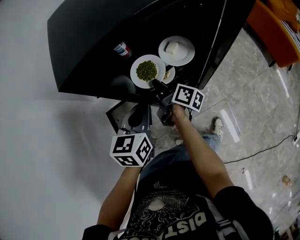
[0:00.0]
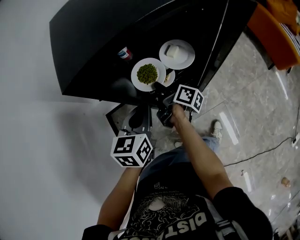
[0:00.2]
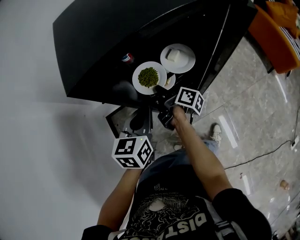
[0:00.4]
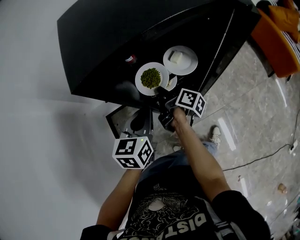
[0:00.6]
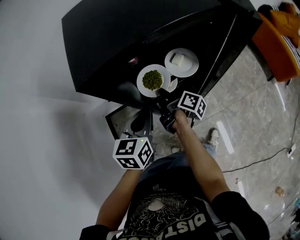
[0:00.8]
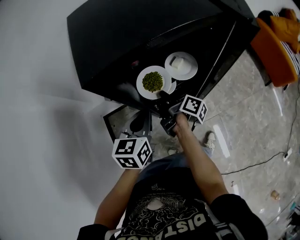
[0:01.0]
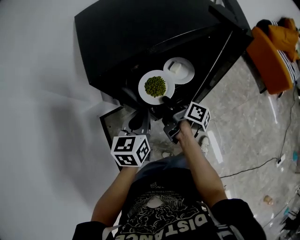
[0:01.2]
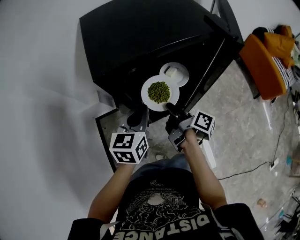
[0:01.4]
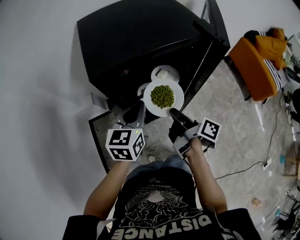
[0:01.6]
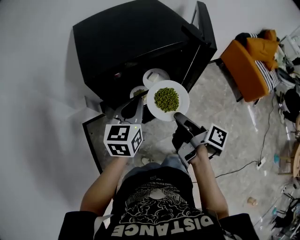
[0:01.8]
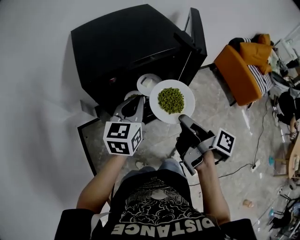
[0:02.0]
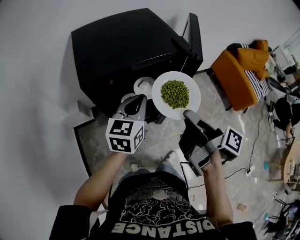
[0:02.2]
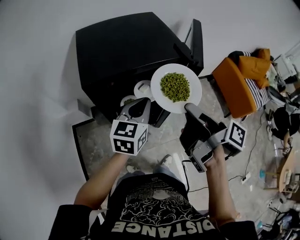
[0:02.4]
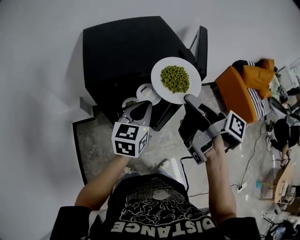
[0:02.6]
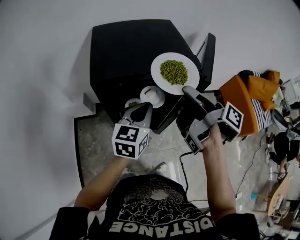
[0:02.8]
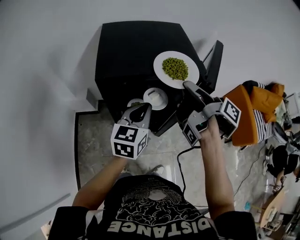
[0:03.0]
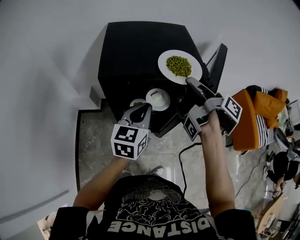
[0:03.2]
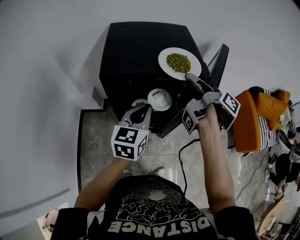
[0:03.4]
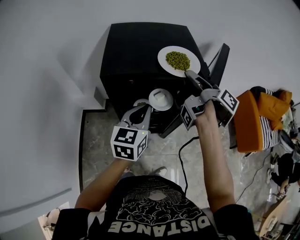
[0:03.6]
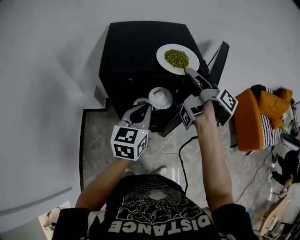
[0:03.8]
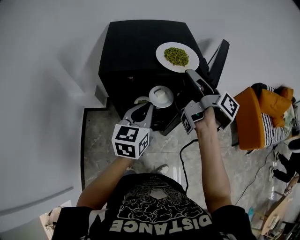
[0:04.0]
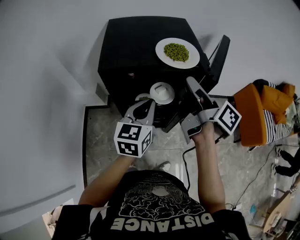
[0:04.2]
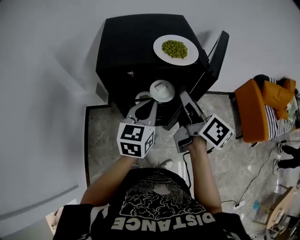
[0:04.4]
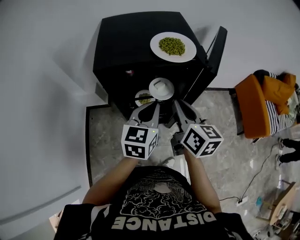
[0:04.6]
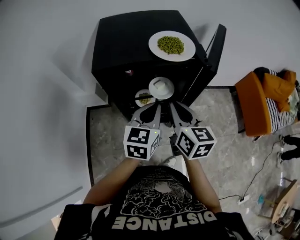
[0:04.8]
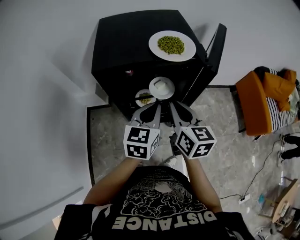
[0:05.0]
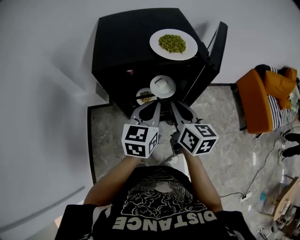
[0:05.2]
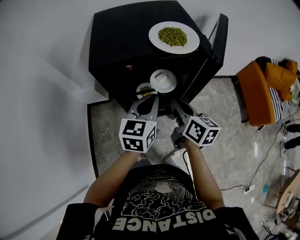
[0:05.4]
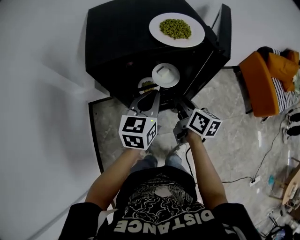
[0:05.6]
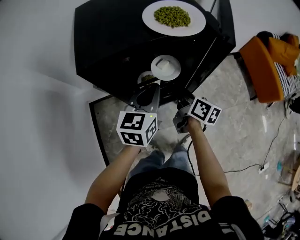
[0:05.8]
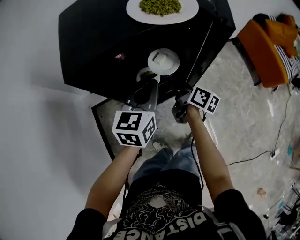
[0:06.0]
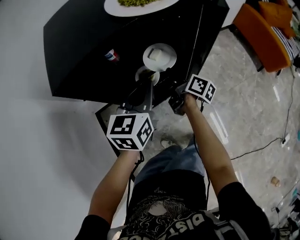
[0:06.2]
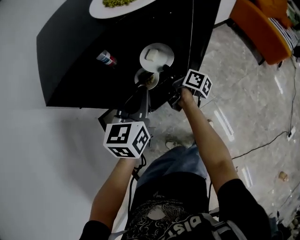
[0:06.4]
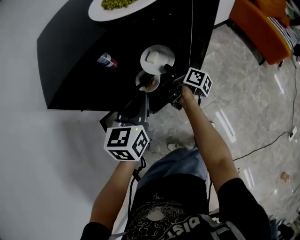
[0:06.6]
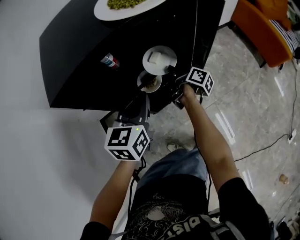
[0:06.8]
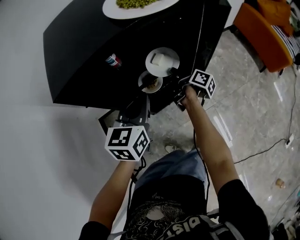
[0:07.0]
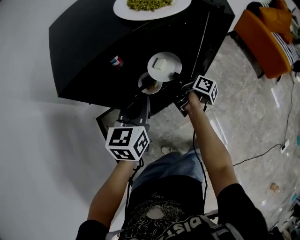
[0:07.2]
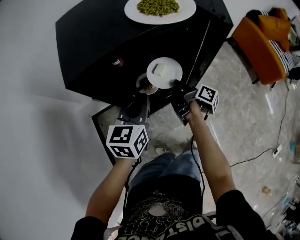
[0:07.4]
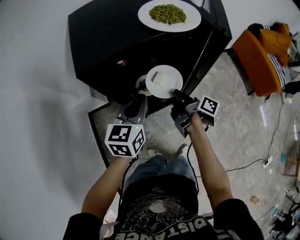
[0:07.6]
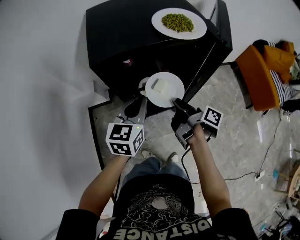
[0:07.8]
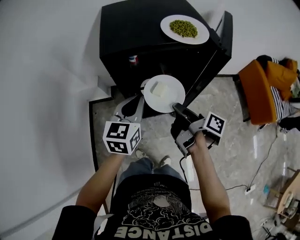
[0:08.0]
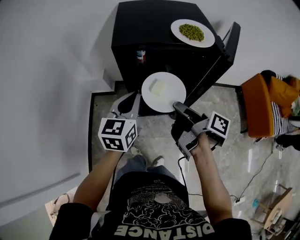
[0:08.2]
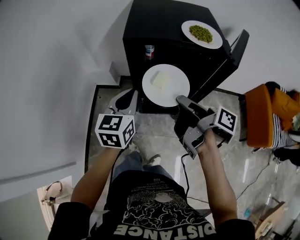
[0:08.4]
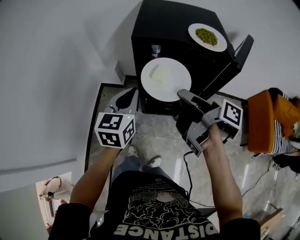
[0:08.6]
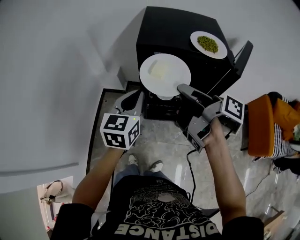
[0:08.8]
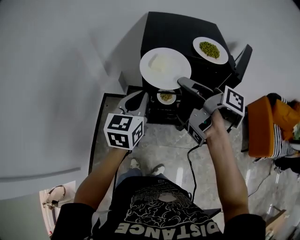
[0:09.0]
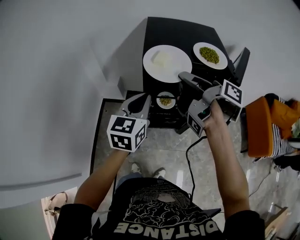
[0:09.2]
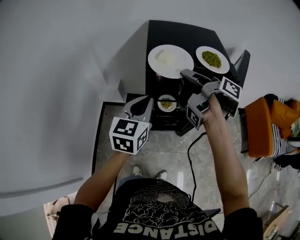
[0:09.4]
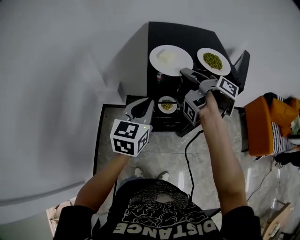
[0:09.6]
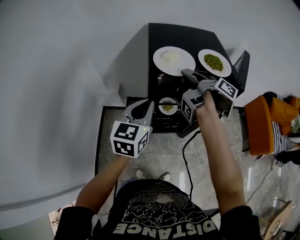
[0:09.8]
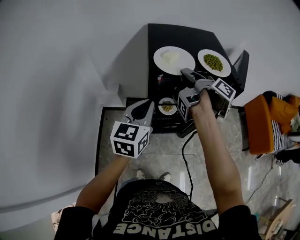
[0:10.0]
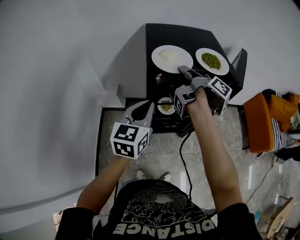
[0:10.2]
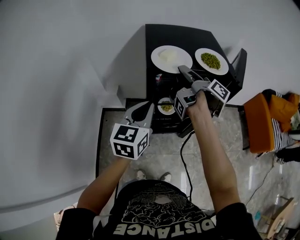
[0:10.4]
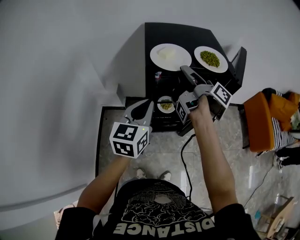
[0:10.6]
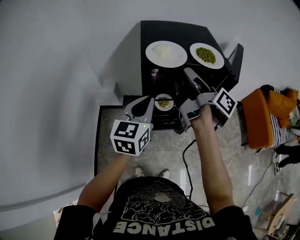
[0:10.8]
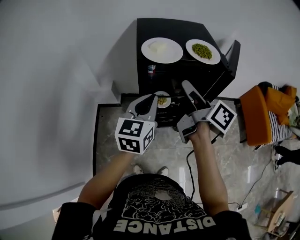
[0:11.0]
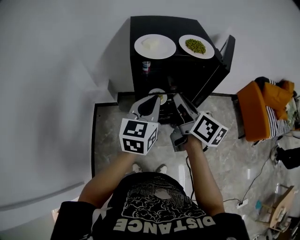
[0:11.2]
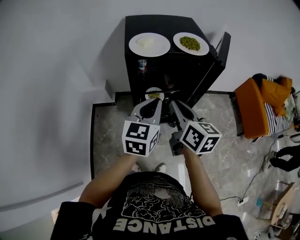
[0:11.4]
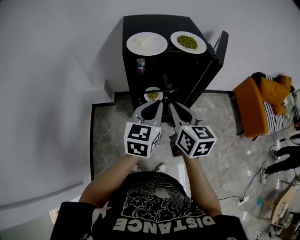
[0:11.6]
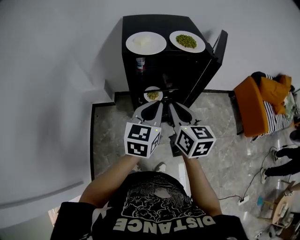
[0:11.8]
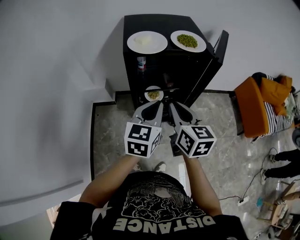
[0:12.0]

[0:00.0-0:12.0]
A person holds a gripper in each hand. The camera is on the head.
0.0 to 1.6 s: The right gripper heads upward, backward and to the right, covering some 20 cm, and closes its fingers. Meanwhile the left gripper is displaced upward by some 10 cm.
1.6 to 3.0 s: The left gripper heads upward and to the right, covering approximately 10 cm; the right gripper is displaced upward and forward by approximately 25 cm.
3.0 to 4.4 s: The right gripper ends up some 5 cm from where it was, and changes its angle by about 40 degrees.
4.4 to 6.0 s: The right gripper goes approximately 25 cm downward, and swivels roughly 20 degrees, while the left gripper goes some 10 cm downward.
6.0 to 7.6 s: The right gripper changes its angle by about 30 degrees; the left gripper moves some 5 cm.
7.6 to 9.0 s: The left gripper goes some 10 cm upward, and swivels about 20 degrees. Meanwhile the right gripper travels upward by roughly 30 cm, and turns by some 30 degrees.
9.0 to 10.4 s: The right gripper is displaced forward by some 10 cm, and turns by approximately 20 degrees.
10.4 to 12.0 s: The left gripper goes approximately 15 cm to the right and backward; the right gripper is displaced backward by roughly 20 cm, and twists roughly 80 degrees counterclockwise, seen from behind.

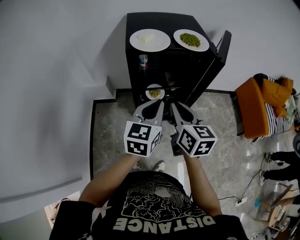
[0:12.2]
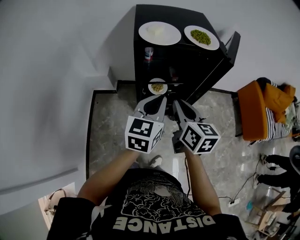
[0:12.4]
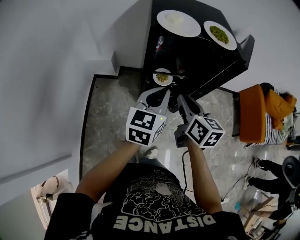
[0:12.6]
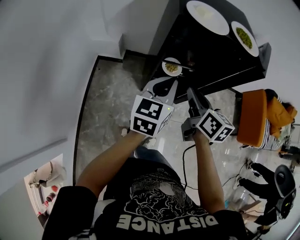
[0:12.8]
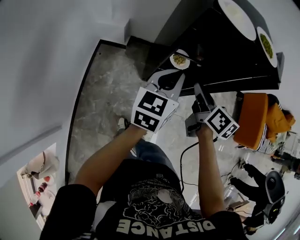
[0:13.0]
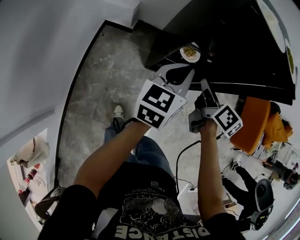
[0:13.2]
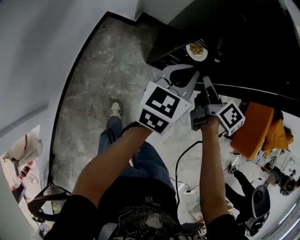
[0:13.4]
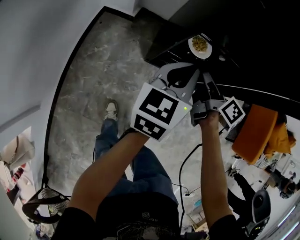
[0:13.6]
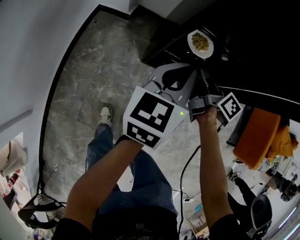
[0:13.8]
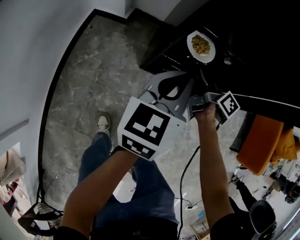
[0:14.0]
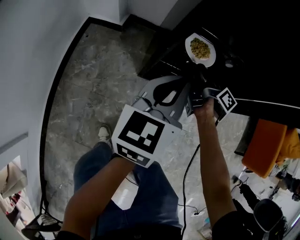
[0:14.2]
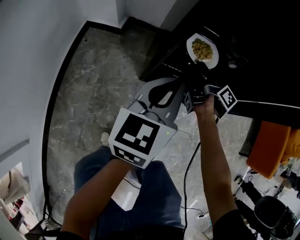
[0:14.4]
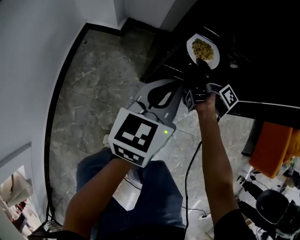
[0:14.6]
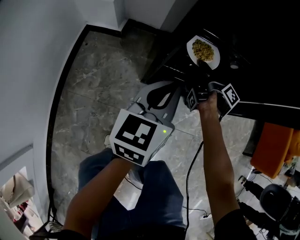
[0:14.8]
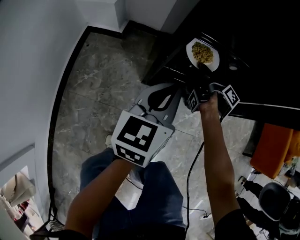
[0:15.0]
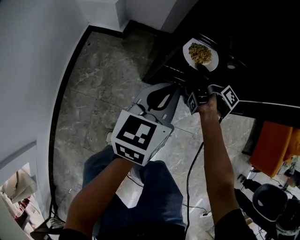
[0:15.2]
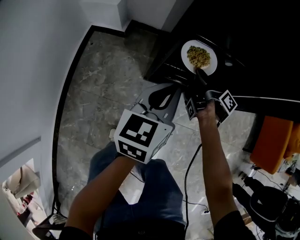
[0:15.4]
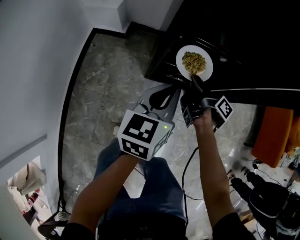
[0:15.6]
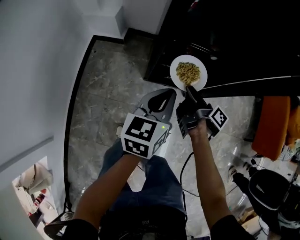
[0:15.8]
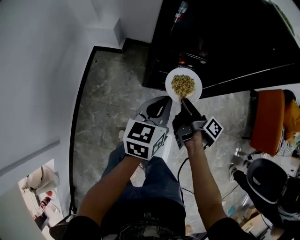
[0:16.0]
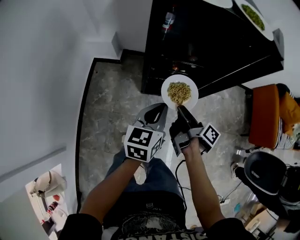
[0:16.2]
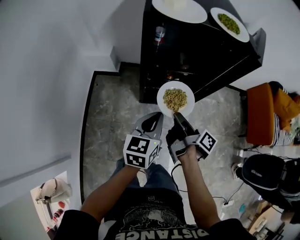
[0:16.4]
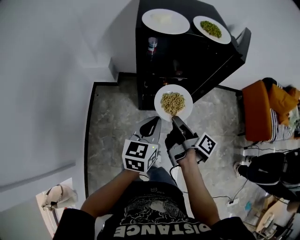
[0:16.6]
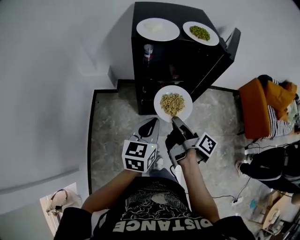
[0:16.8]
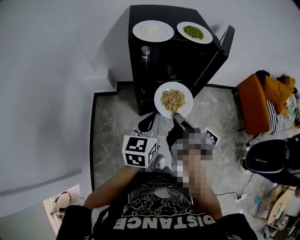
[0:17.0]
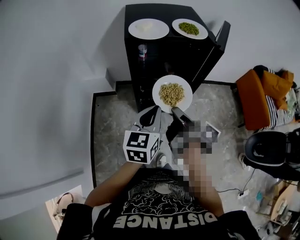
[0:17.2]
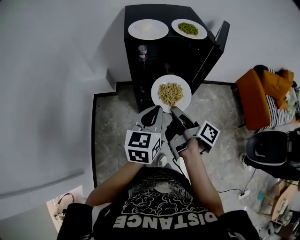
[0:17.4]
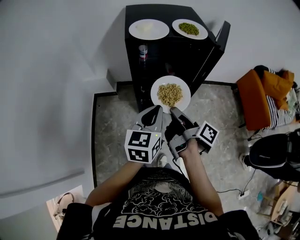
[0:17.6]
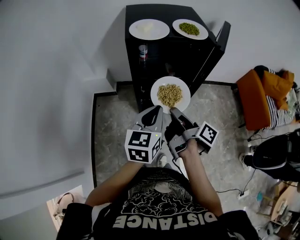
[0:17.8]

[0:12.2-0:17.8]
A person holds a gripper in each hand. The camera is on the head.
12.2 to 13.6 s: The two grippers go approximately 25 cm downward. The left gripper swivels roughly 20 degrees. The right gripper rotates approximately 40 degrees.
13.6 to 15.0 s: The right gripper travels downward and forward by some 25 cm, changes its angle by some 40 degrees, and opens, then closes once more. Meanwhile the left gripper is displaced downward by approximately 15 cm.
15.0 to 16.4 s: The right gripper heads upward and backward, covering roughly 40 cm. The left gripper moves upward and backward, roughly 25 cm.
16.4 to 17.8 s: Both grippers move upward, about 10 cm.

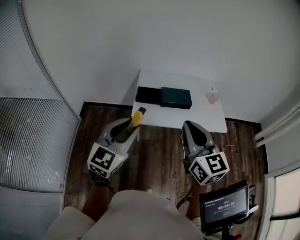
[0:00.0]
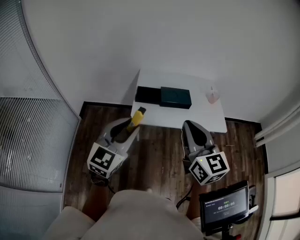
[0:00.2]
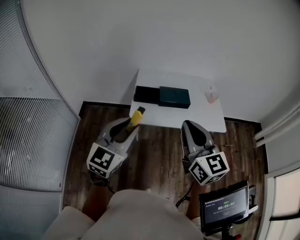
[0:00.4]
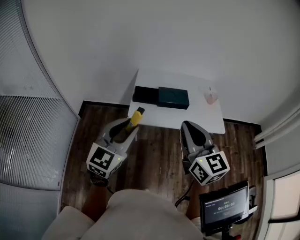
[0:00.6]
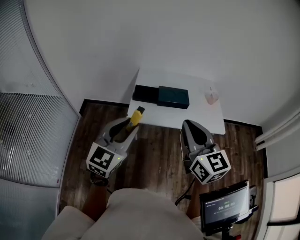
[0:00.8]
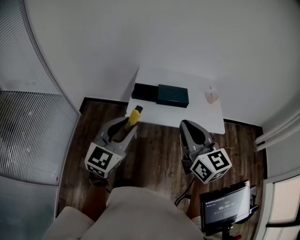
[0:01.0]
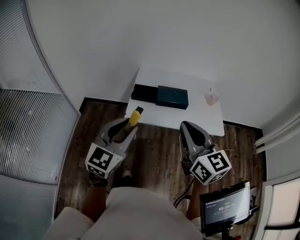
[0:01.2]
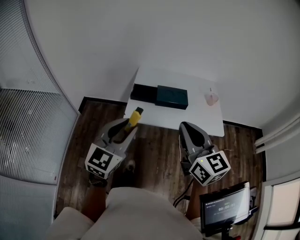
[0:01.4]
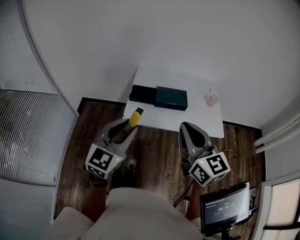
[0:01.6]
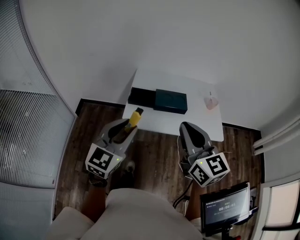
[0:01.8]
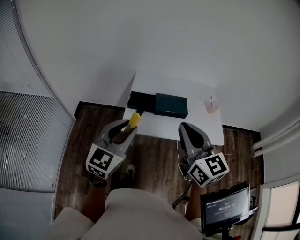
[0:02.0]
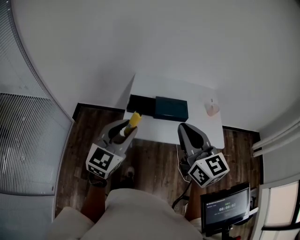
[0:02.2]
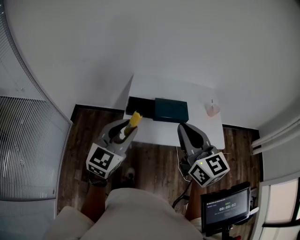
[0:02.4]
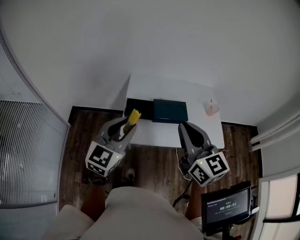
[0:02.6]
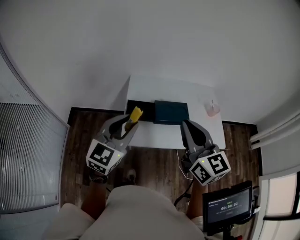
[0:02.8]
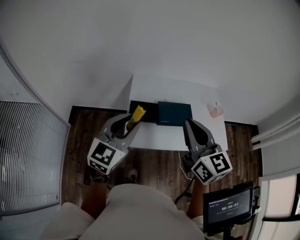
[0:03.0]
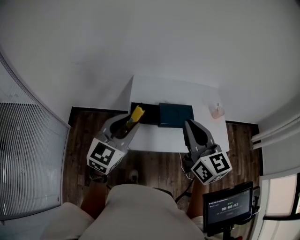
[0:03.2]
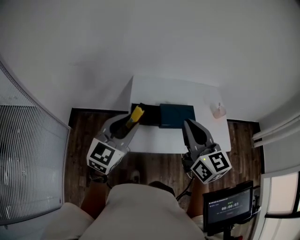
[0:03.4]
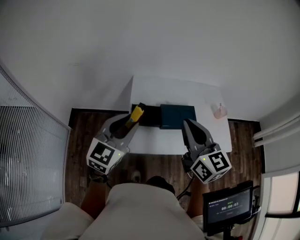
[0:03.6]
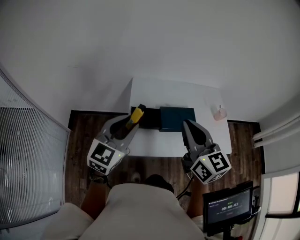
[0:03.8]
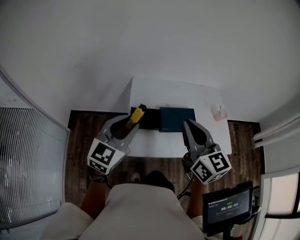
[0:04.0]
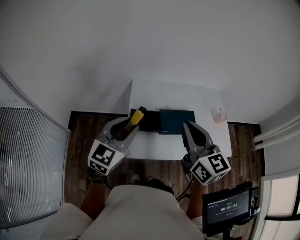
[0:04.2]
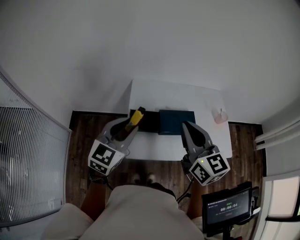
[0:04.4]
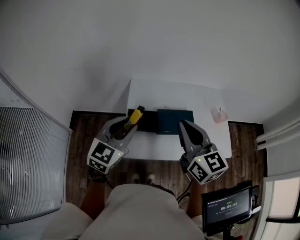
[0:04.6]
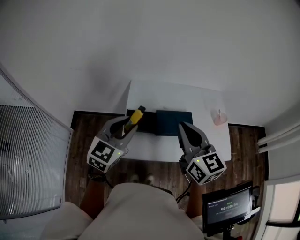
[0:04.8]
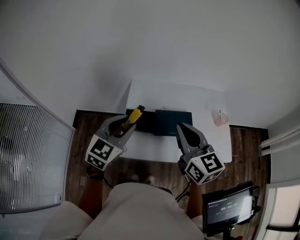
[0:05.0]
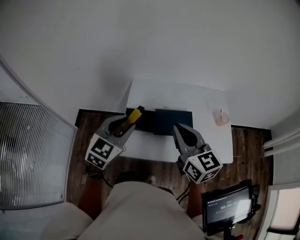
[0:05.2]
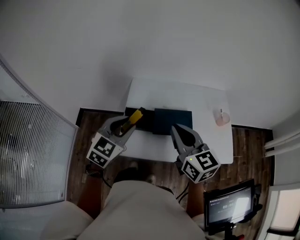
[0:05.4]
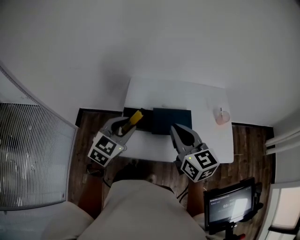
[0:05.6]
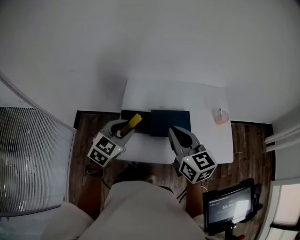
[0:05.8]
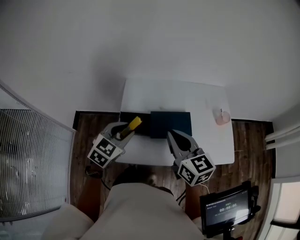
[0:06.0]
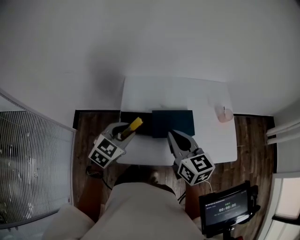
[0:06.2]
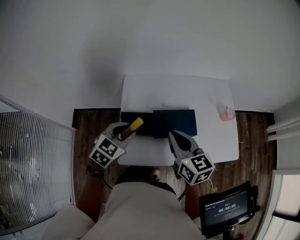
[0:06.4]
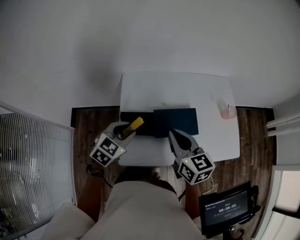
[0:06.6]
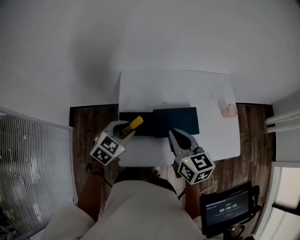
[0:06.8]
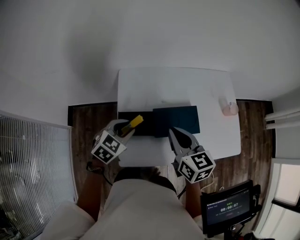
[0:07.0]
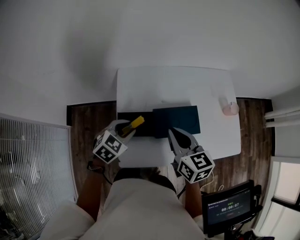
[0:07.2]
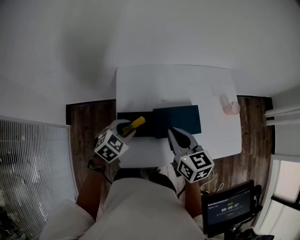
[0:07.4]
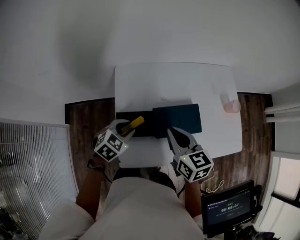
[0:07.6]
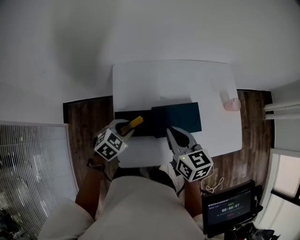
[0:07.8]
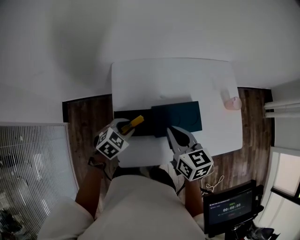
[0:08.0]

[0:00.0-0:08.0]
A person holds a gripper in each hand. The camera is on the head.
0.0 to 4.8 s: The grippers make only small movements.
4.8 to 6.4 s: The grippers both shift downward by roughly 10 cm. The left gripper turns by some 20 degrees.
6.4 to 8.0 s: The left gripper travels downward by about 10 cm.
